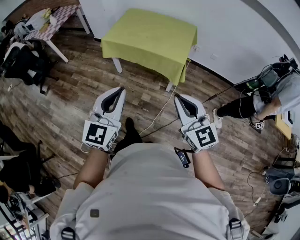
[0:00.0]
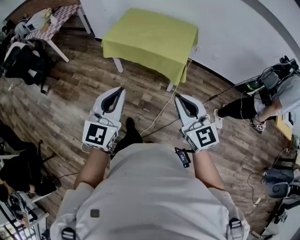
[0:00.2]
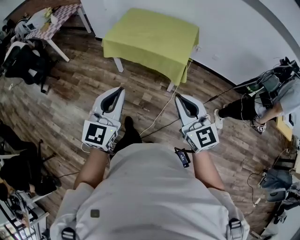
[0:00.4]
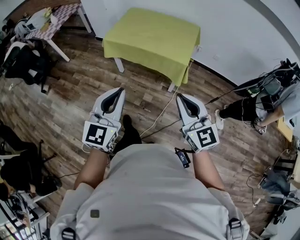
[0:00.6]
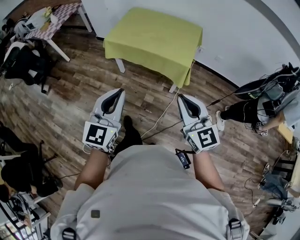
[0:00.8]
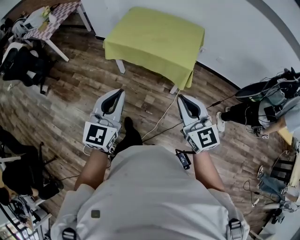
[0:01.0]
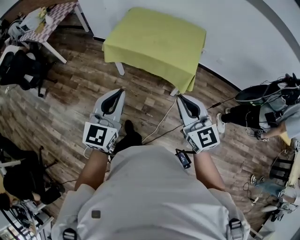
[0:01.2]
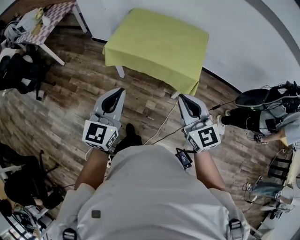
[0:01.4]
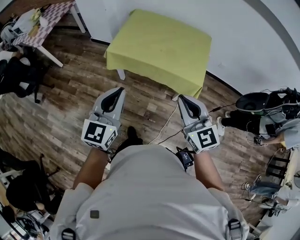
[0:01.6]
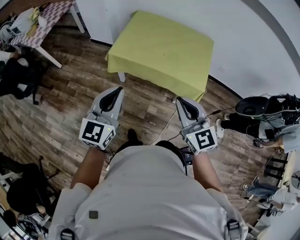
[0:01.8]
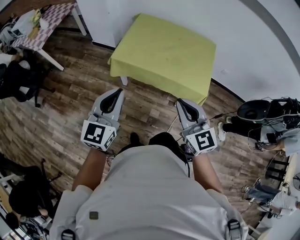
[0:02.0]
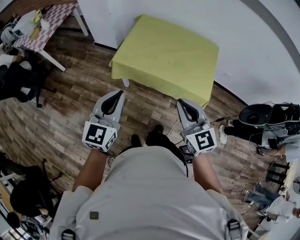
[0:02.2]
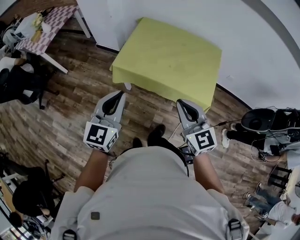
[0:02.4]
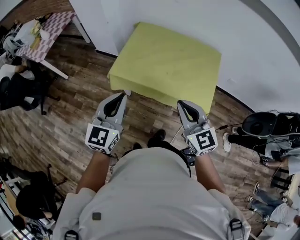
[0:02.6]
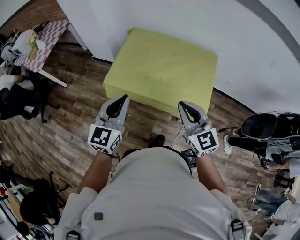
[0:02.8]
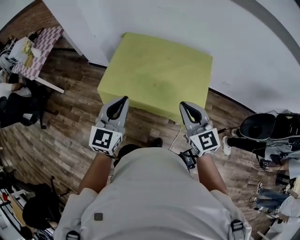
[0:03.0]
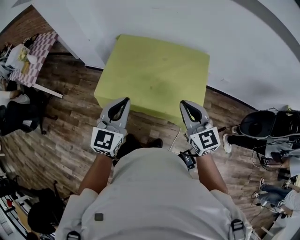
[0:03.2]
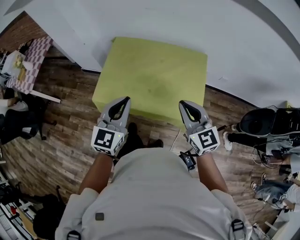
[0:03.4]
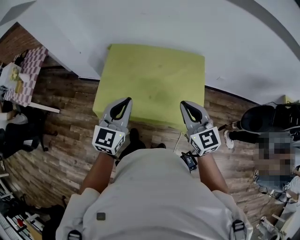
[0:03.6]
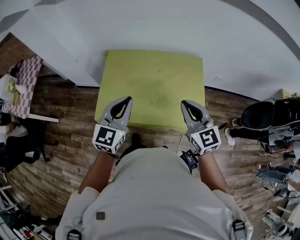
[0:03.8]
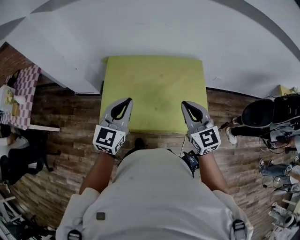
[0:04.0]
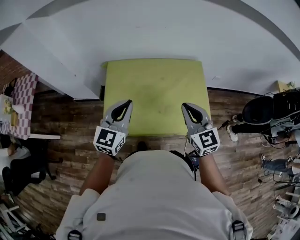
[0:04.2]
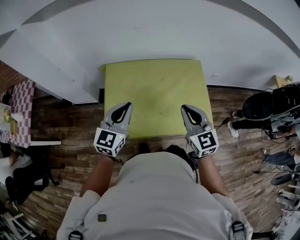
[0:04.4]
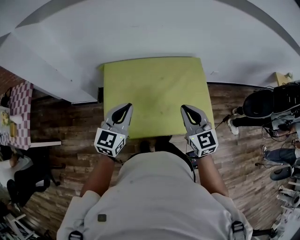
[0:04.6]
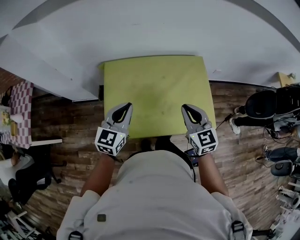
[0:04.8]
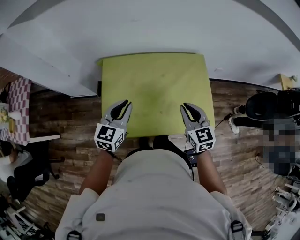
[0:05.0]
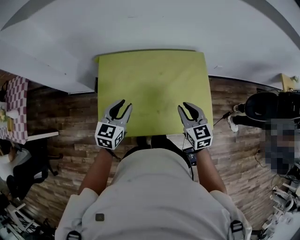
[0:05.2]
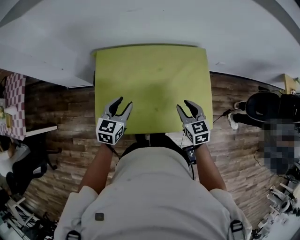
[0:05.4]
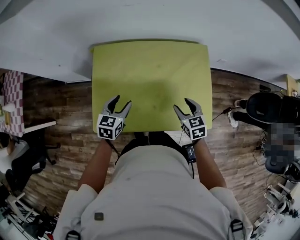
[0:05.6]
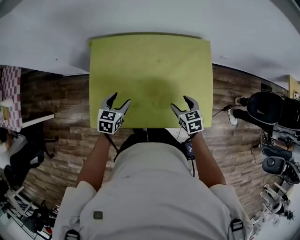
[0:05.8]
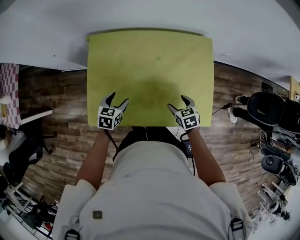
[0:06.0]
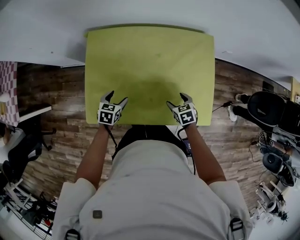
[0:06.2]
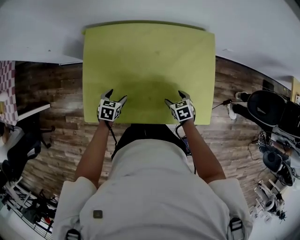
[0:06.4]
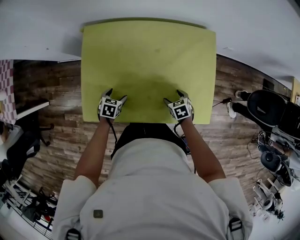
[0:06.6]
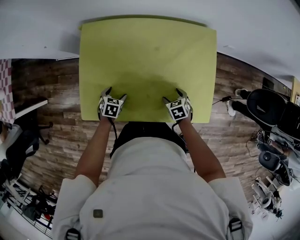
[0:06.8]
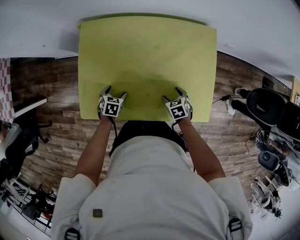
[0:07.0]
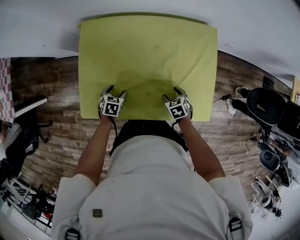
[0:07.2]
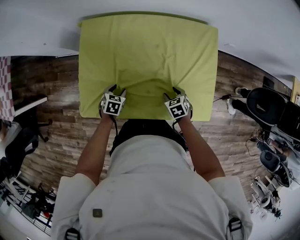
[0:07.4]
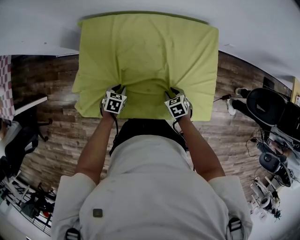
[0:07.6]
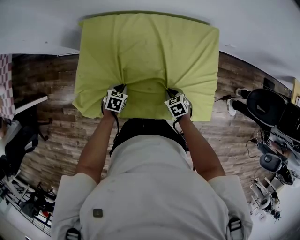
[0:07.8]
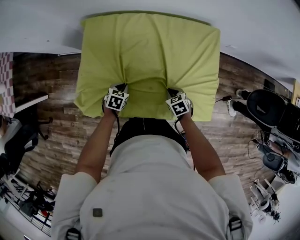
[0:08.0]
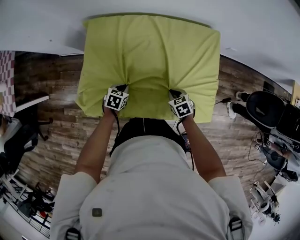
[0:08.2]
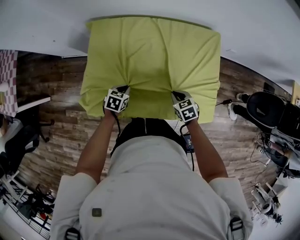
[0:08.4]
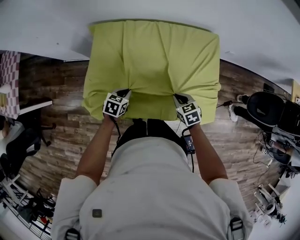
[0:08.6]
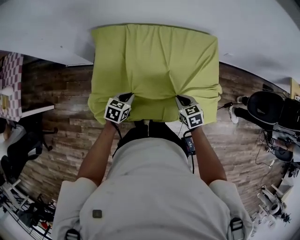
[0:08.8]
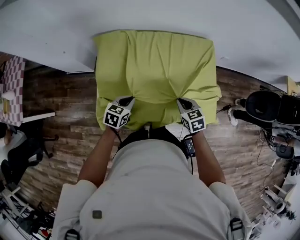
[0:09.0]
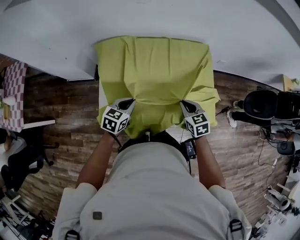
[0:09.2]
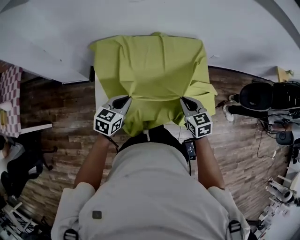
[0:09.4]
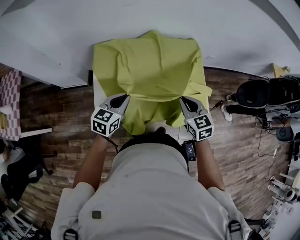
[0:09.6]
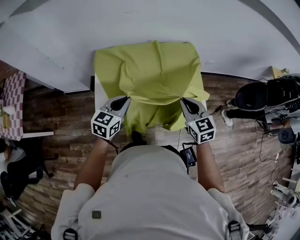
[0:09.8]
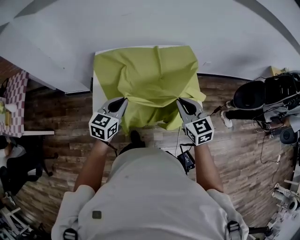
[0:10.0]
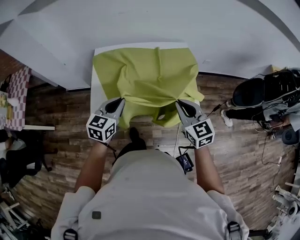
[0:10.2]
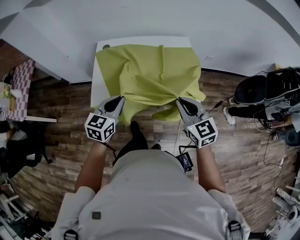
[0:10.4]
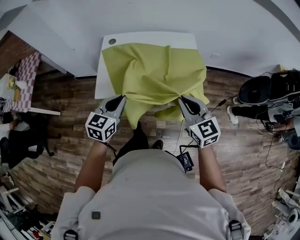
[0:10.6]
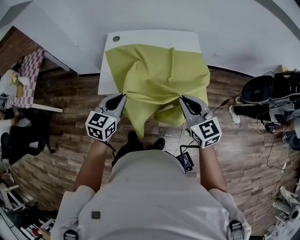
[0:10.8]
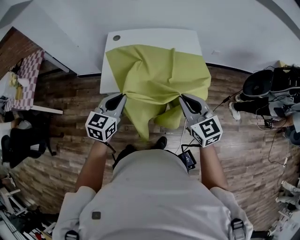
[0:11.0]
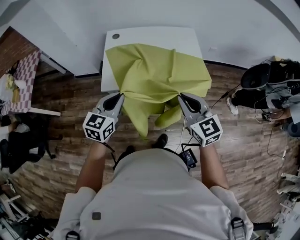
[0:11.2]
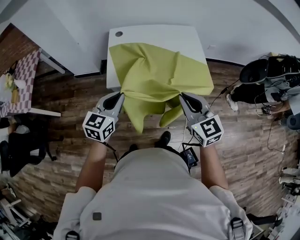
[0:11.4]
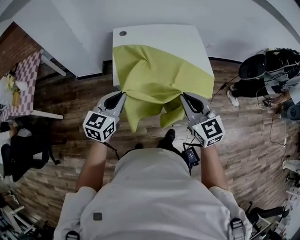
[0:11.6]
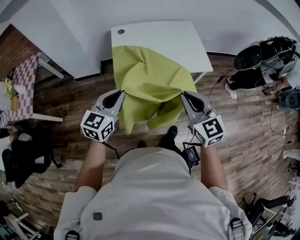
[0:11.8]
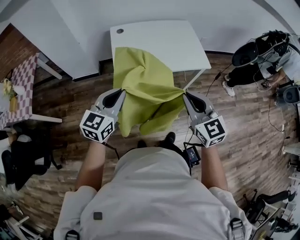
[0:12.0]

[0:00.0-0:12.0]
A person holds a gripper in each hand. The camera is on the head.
0:00.0 to 0:01.6: Both grippers move forward and to the left, about 30 cm.
0:01.6 to 0:03.0: The right gripper travels forward and to the right by approximately 25 cm. Meanwhile the left gripper heads forward, covering roughly 25 cm.
0:03.0 to 0:04.4: Both grippers move forward and to the left, roughly 20 cm. The right gripper rotates some 30 degrees, while the left gripper turns by about 20 degrees.
0:04.4 to 0:06.0: The two grippers go roughly 30 cm downward. The right gripper angles its fingers downward, by about 40 degrees, and opens up. Meanwhile the left gripper angles its fingers downward, by some 40 degrees, and opens its fingers.
0:06.0 to 0:07.6: The right gripper moves downward, roughly 5 cm, and closes up; the left gripper shifts roughly 10 cm downward, and closes.
0:07.6 to 0:09.0: Both grippers move upward, roughly 15 cm. The left gripper swivels approximately 20 degrees.
0:09.0 to 0:10.4: Both grippers move upward, backward and to the right, roughly 30 cm. The right gripper changes its angle by roughly 30 degrees; the left gripper turns by roughly 20 degrees.
0:10.4 to 0:12.0: The left gripper moves to the left and backward, approximately 30 cm; the right gripper heads backward and to the left, covering some 35 cm.

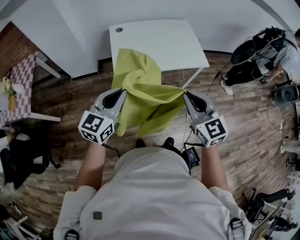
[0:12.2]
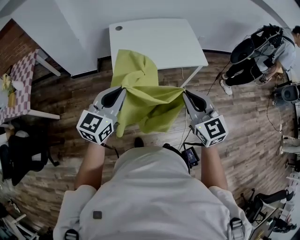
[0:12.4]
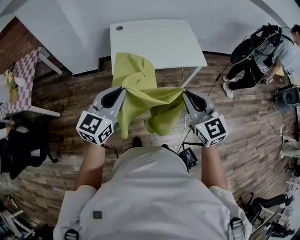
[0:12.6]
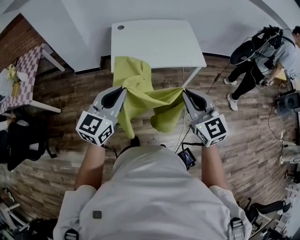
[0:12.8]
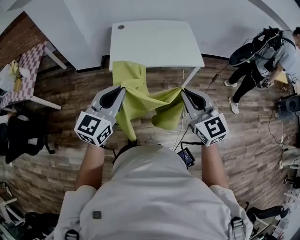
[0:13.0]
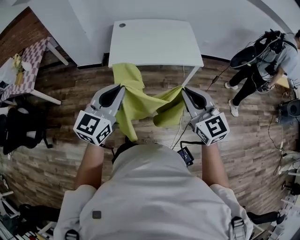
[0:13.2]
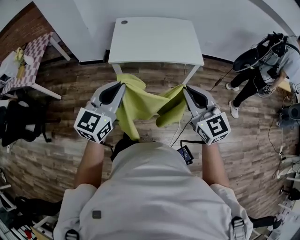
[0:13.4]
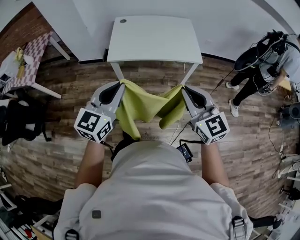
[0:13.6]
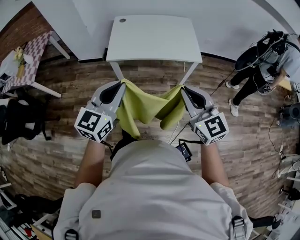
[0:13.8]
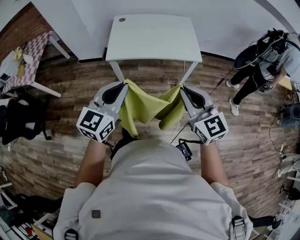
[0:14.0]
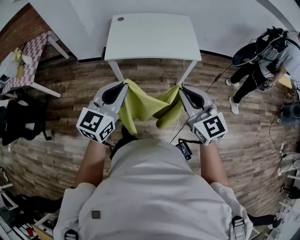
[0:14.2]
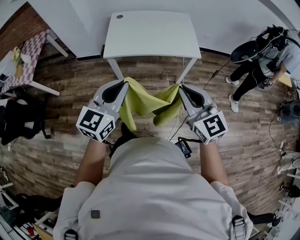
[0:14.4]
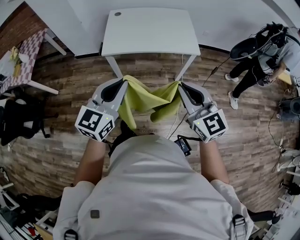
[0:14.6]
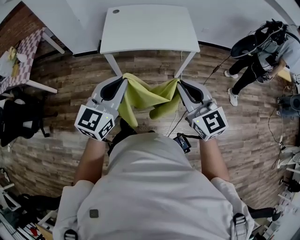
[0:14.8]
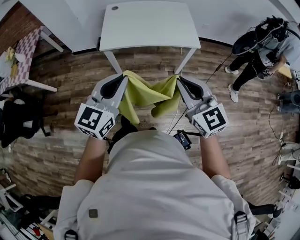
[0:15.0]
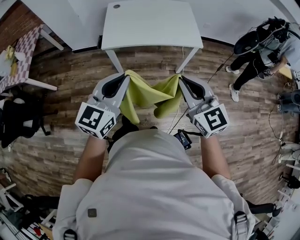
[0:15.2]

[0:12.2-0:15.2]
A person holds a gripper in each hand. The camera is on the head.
0:12.2 to 0:13.8: Both grippers travel together to the right and backward, some 20 cm.
0:13.8 to 0:15.2: The grippers stay close to where they were, moving slightly.

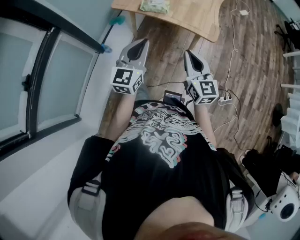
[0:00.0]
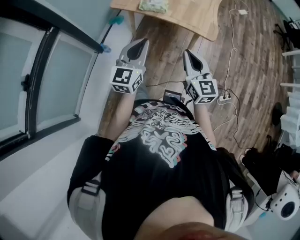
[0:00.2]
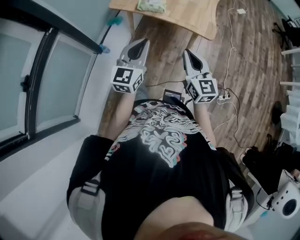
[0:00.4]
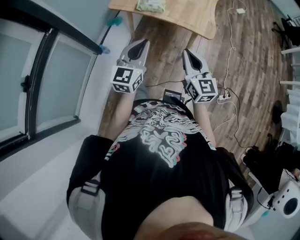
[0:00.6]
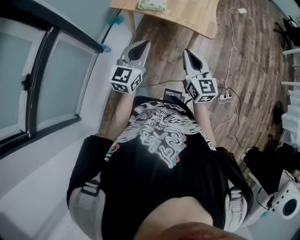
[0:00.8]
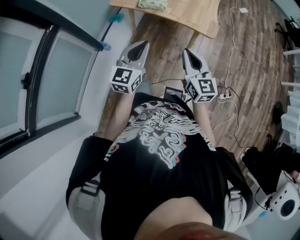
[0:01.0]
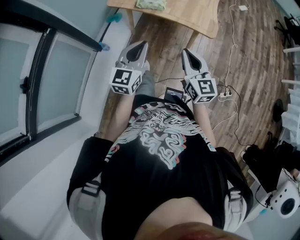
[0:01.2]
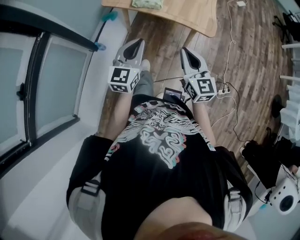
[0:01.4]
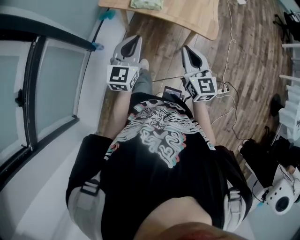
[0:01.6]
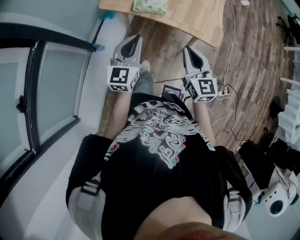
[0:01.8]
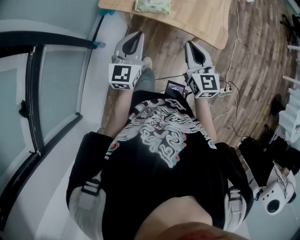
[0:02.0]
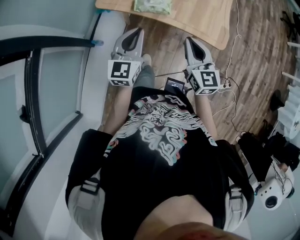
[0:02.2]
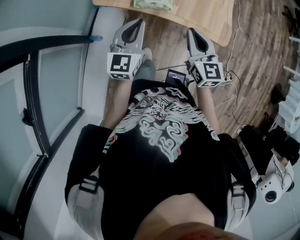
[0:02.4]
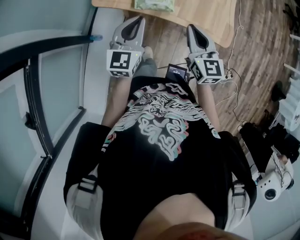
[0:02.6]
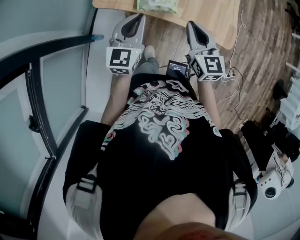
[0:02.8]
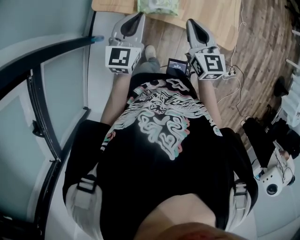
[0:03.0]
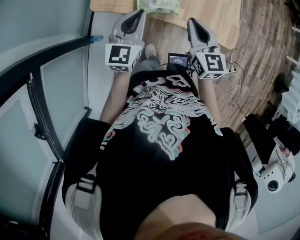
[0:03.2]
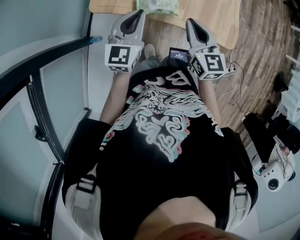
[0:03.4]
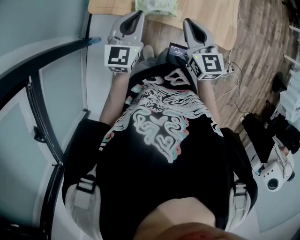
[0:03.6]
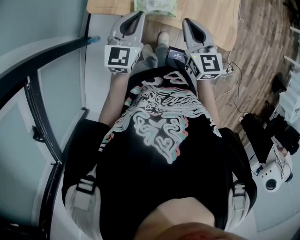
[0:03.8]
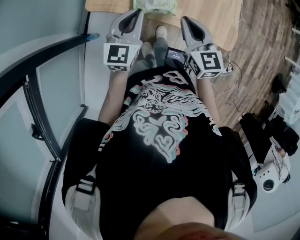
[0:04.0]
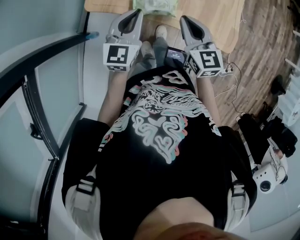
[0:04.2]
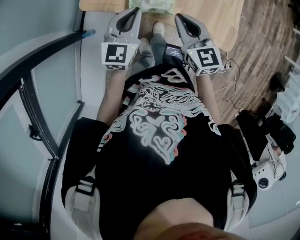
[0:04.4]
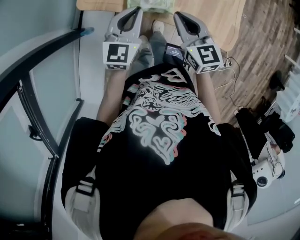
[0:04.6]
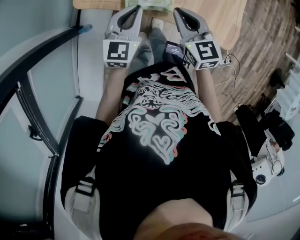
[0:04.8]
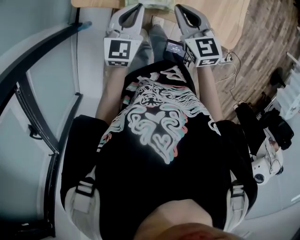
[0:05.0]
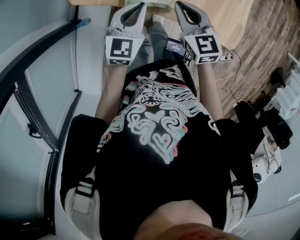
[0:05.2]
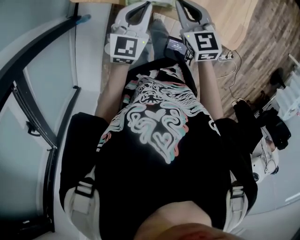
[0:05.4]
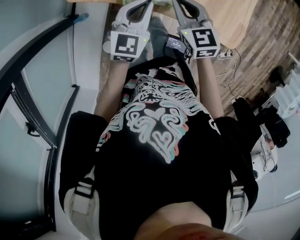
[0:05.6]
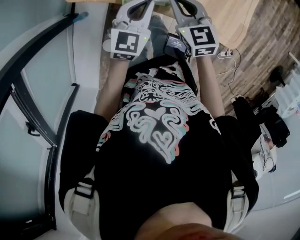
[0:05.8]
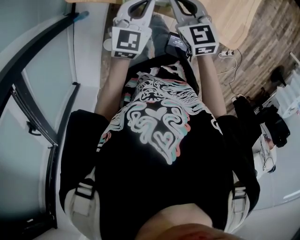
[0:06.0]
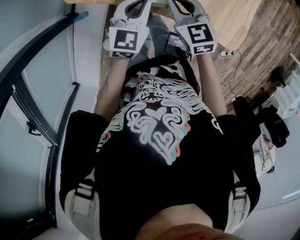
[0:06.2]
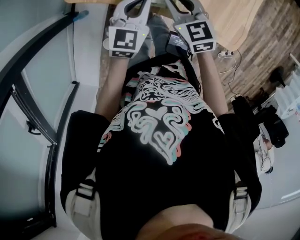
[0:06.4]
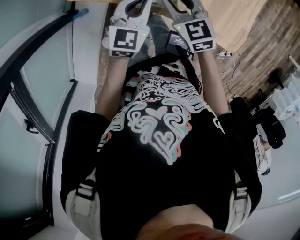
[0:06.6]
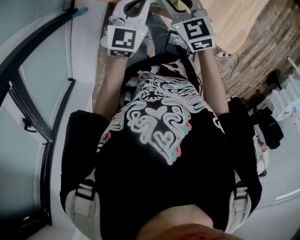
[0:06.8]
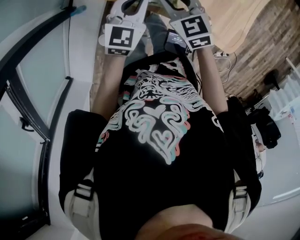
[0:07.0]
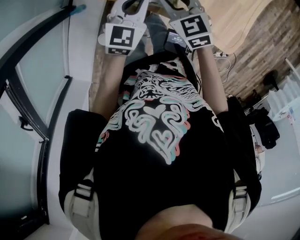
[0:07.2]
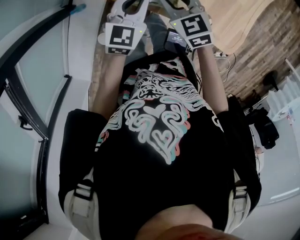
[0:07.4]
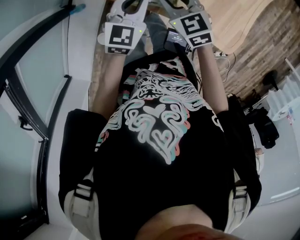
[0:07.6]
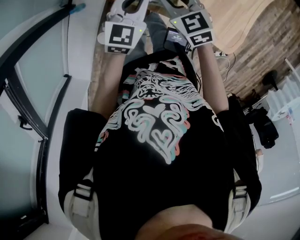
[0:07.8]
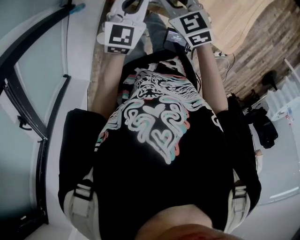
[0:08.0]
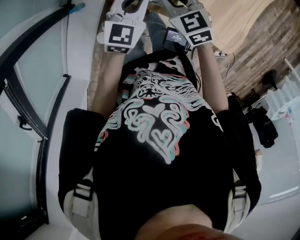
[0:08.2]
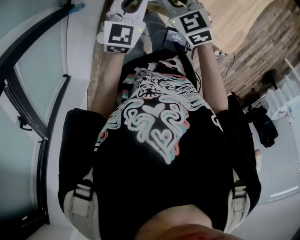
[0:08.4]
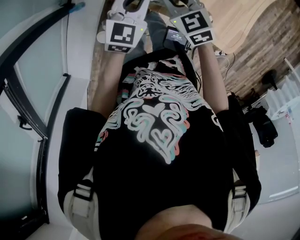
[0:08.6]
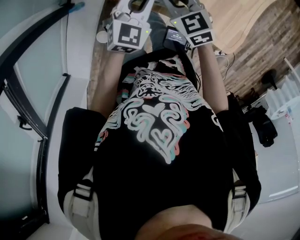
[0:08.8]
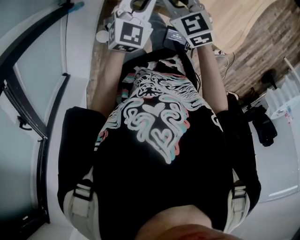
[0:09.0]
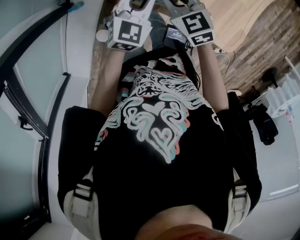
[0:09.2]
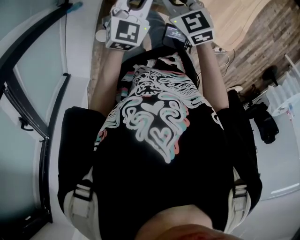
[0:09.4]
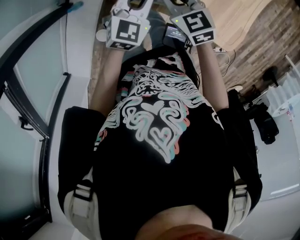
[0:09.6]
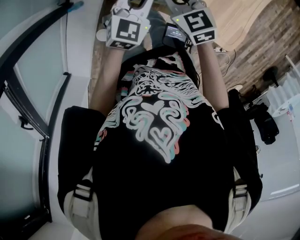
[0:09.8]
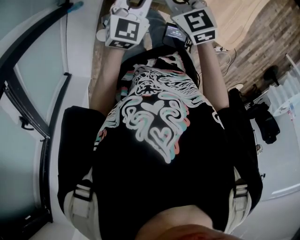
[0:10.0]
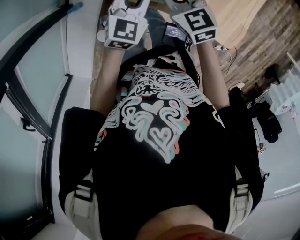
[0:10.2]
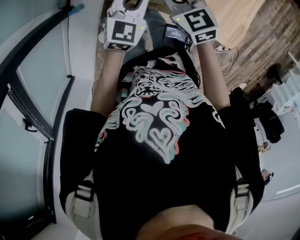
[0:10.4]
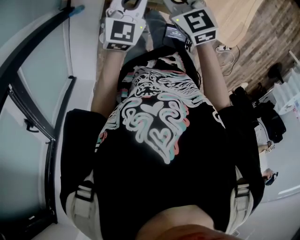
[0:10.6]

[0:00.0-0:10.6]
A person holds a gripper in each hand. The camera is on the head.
0:00.0 to 0:01.6: Both grippers travel together forward, about 10 cm.
0:01.6 to 0:03.0: Both grippers move forward, approximately 25 cm.
0:03.0 to 0:04.6: The right gripper moves forward and downward, some 10 cm, while the left gripper is displaced downward and forward by roughly 10 cm.
0:04.6 to 0:06.0: The left gripper travels downward by some 10 cm. The right gripper heads downward and forward, covering some 10 cm.
0:06.0 to 0:07.6: The grippers stay close to where they were, moving slightly.
0:07.6 to 0:10.6: The grippers move only a little.
